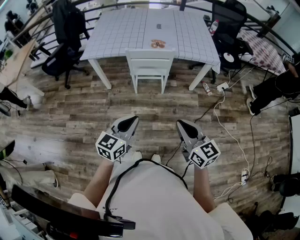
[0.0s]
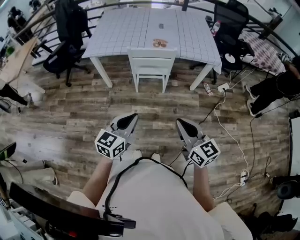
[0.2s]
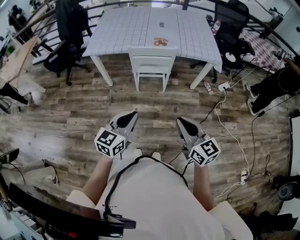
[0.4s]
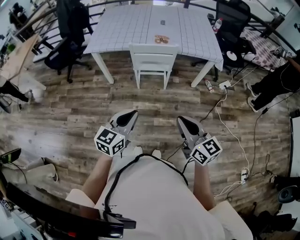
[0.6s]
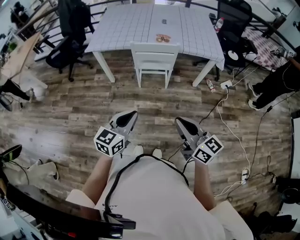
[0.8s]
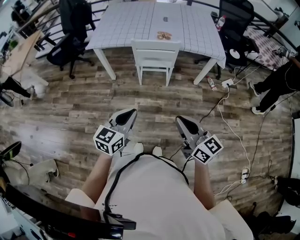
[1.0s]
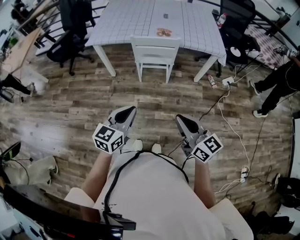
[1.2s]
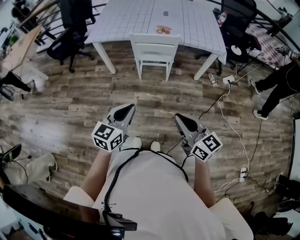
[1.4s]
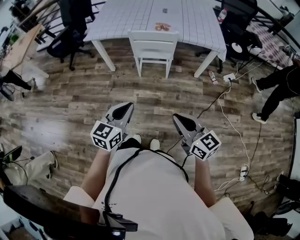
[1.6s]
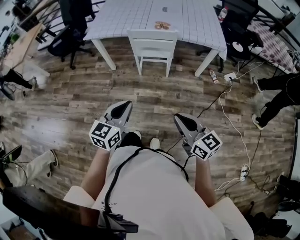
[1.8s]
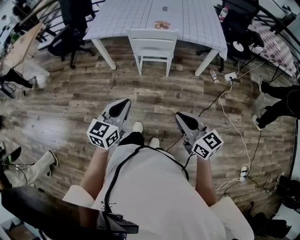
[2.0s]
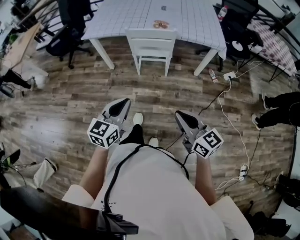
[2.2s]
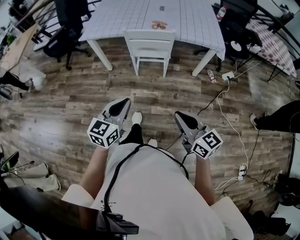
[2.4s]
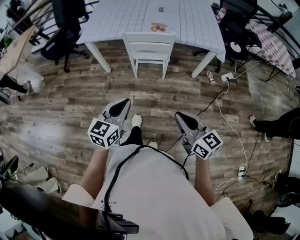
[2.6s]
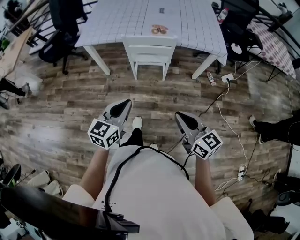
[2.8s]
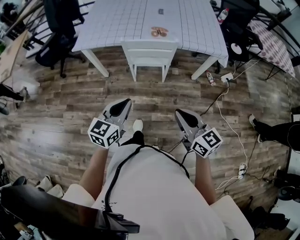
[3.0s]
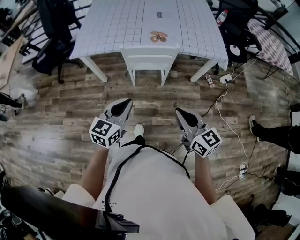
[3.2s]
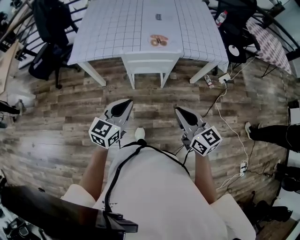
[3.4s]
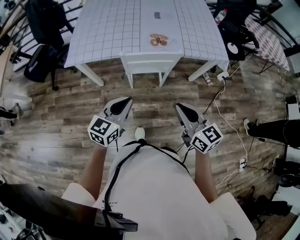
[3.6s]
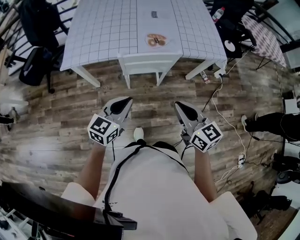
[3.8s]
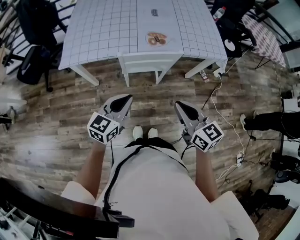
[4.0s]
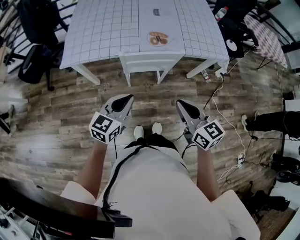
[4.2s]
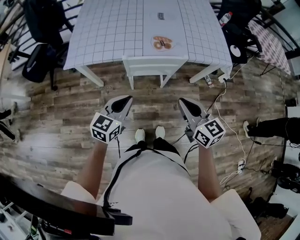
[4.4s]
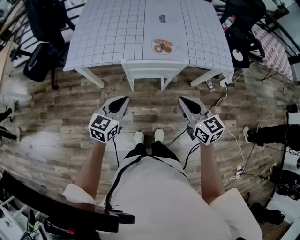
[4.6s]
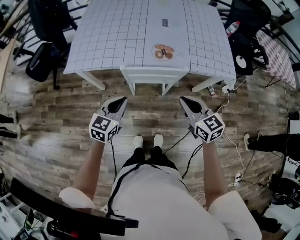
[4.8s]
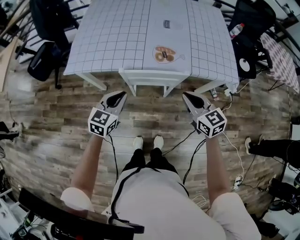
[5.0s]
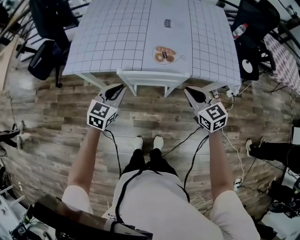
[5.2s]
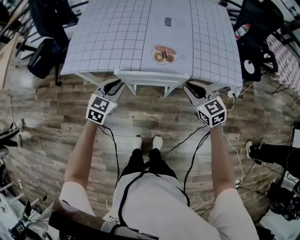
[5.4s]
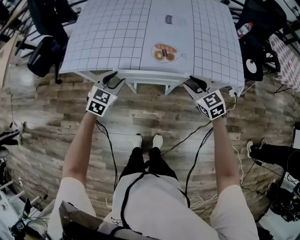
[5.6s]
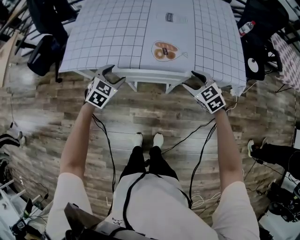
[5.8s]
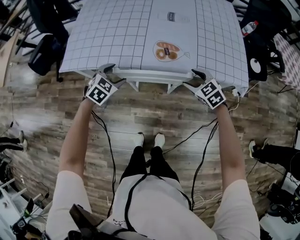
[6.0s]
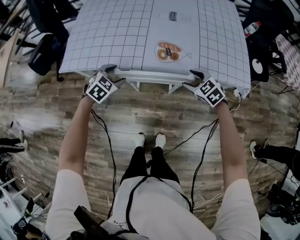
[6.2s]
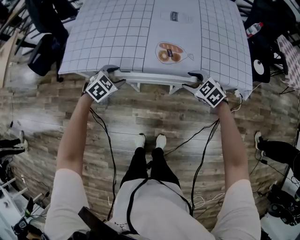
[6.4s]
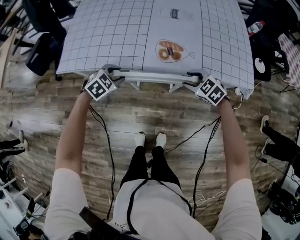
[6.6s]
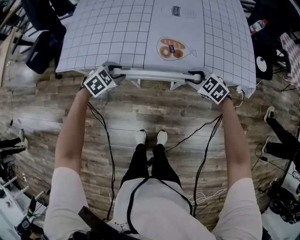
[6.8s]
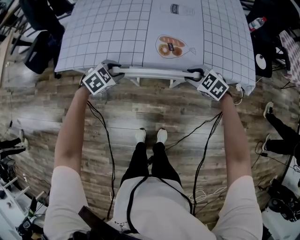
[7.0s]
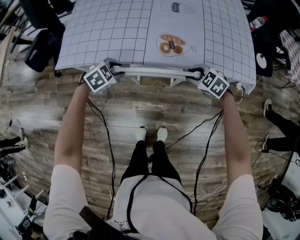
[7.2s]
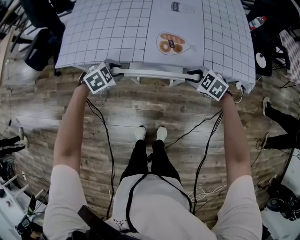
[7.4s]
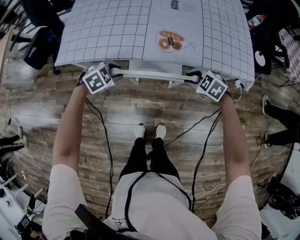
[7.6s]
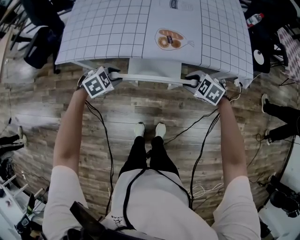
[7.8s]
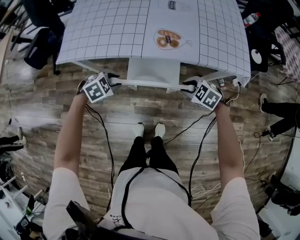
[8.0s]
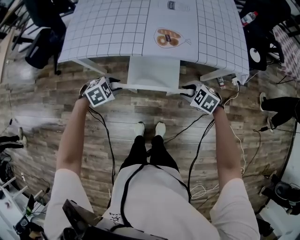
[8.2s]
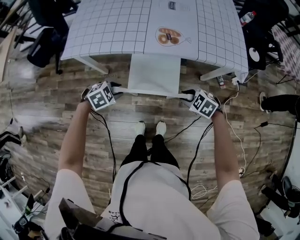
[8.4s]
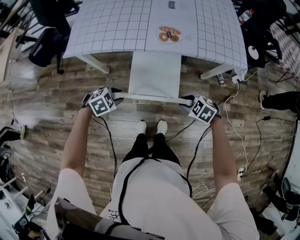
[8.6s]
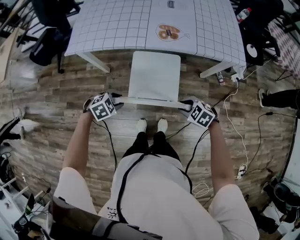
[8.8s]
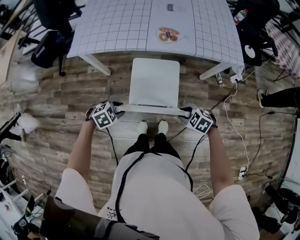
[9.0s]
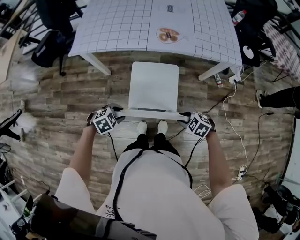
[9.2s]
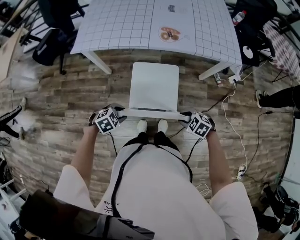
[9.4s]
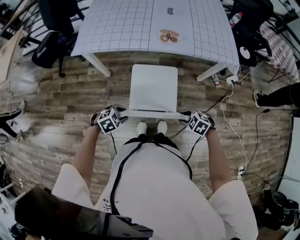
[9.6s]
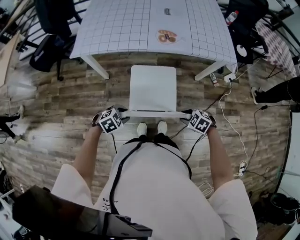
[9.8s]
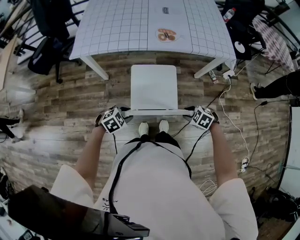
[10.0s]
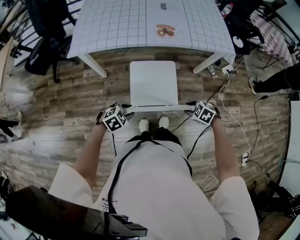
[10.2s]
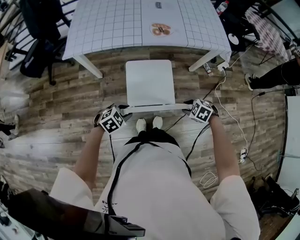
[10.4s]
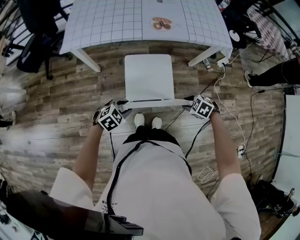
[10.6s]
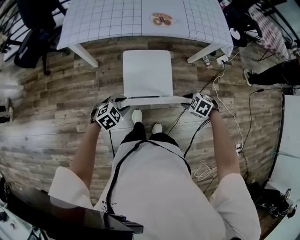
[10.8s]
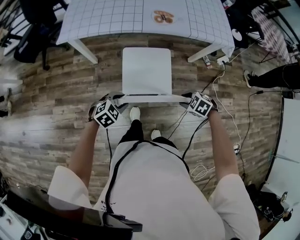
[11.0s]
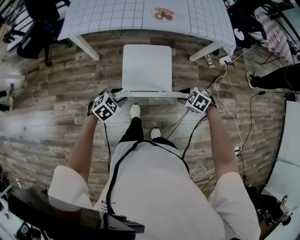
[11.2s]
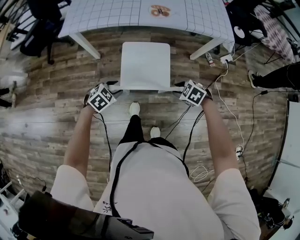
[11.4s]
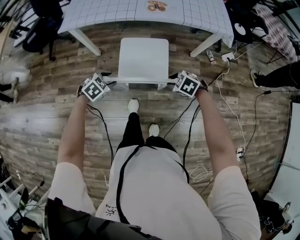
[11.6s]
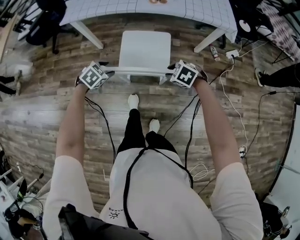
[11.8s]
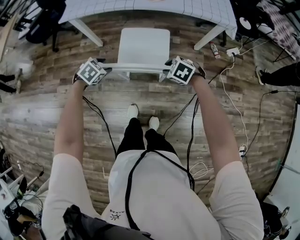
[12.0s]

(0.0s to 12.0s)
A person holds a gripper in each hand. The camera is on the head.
0.0s - 1.6s: The right gripper is displaced backward by approximately 5 cm.
1.6s - 3.0s: The two grippers go some 15 cm forward.
3.0s - 4.4s: The right gripper is displaced forward by some 20 cm. The left gripper is displaced forward and to the left by some 20 cm.
4.4s - 6.0s: The left gripper moves forward and downward, about 30 cm, points its fingers roughly 30 degrees further downward, and opens, while the right gripper shifts approximately 35 cm forward, downward and to the right, rotates some 50 degrees, and opens.
6.0s - 7.6s: The left gripper ends up approximately 5 cm from where it was, changes its angle by approximately 20 degrees, and closes. Meanwhile the right gripper travels downward by roughly 5 cm, changes its angle by about 20 degrees, and closes its fingers.
7.6s - 9.0s: The left gripper changes place by approximately 30 cm. The right gripper shifts by about 30 cm.
9.0s - 10.4s: The grippers move only a little.
10.4s - 12.0s: The left gripper swivels roughly 20 degrees.

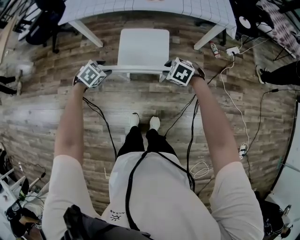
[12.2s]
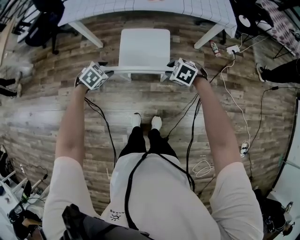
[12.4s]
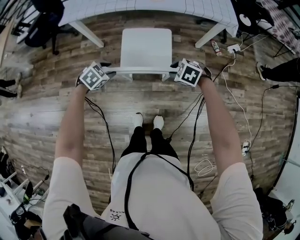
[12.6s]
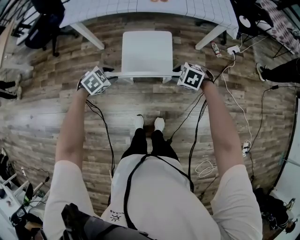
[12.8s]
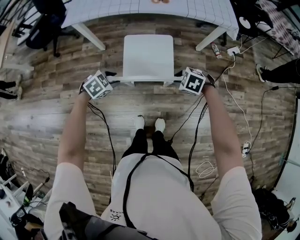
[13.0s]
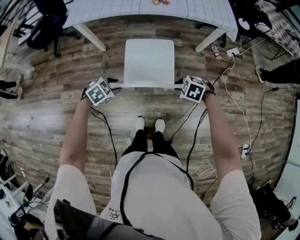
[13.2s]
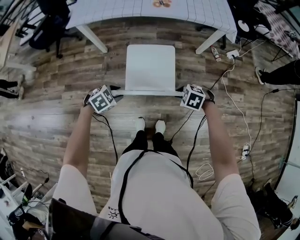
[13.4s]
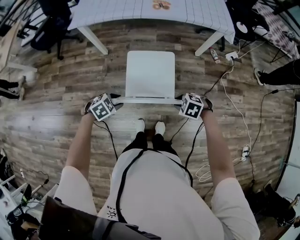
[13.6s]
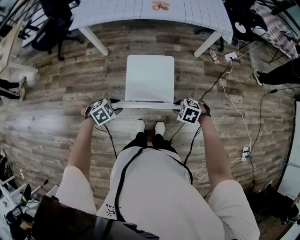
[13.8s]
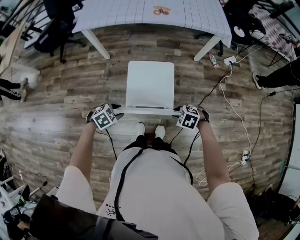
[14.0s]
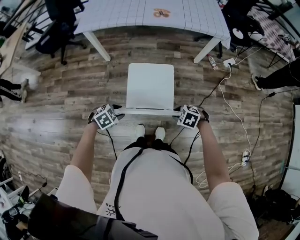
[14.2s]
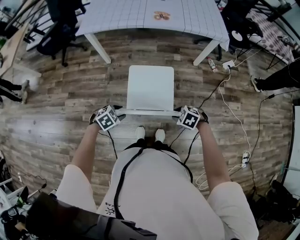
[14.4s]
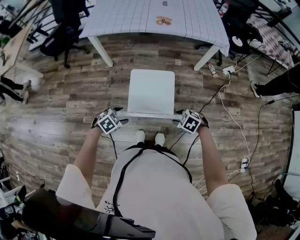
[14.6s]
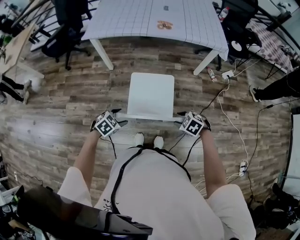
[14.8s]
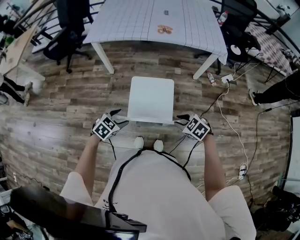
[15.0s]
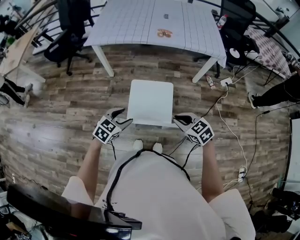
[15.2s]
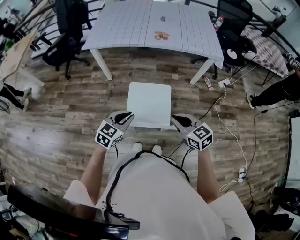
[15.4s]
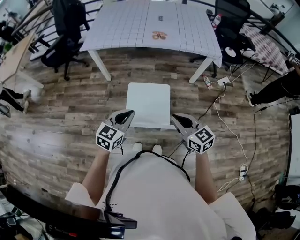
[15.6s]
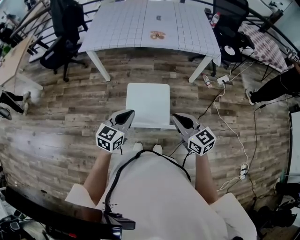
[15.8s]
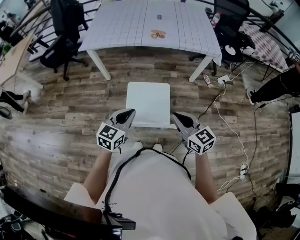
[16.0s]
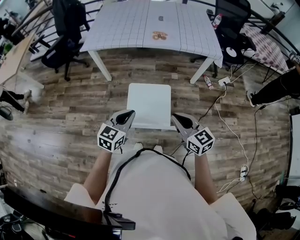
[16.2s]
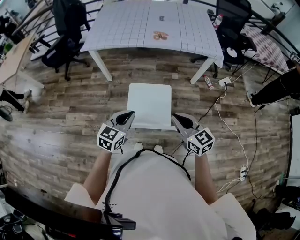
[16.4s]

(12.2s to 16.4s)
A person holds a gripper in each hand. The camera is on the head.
12.2s - 13.6s: The left gripper changes place by approximately 15 cm; the right gripper ends up roughly 15 cm from where it was.
13.6s - 15.0s: Both grippers move upward, approximately 10 cm. The left gripper rotates about 20 degrees, and opens its fingers.
15.0s - 16.4s: The left gripper is displaced upward and to the right by approximately 15 cm, rotates roughly 30 degrees, and closes its fingers, while the right gripper heads upward, covering some 15 cm, tips its fingers upward by some 40 degrees, and closes.

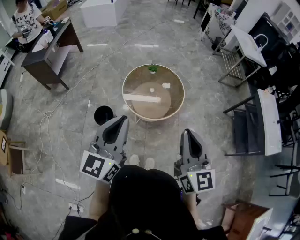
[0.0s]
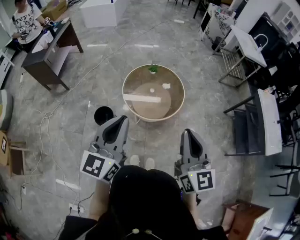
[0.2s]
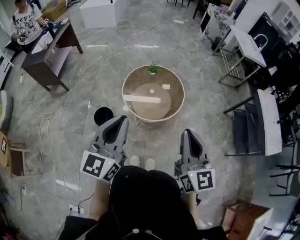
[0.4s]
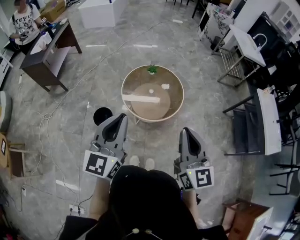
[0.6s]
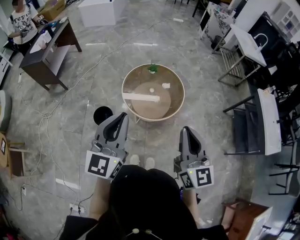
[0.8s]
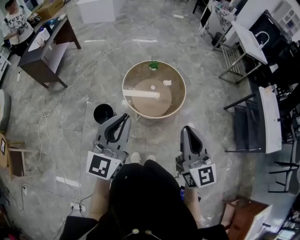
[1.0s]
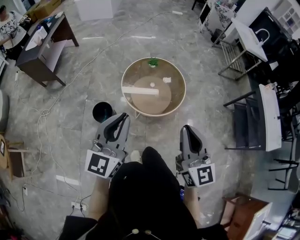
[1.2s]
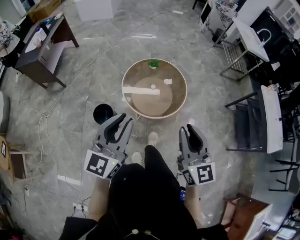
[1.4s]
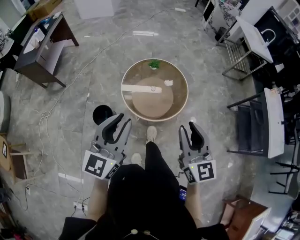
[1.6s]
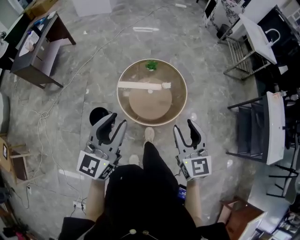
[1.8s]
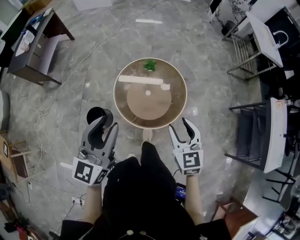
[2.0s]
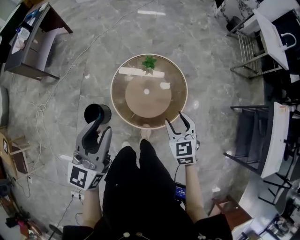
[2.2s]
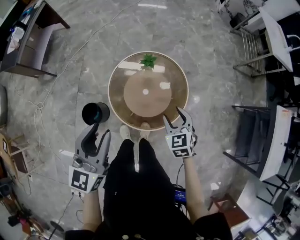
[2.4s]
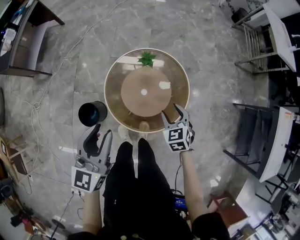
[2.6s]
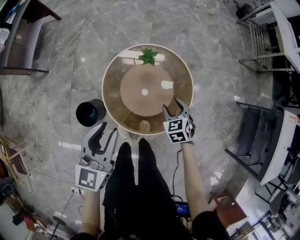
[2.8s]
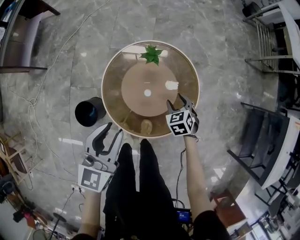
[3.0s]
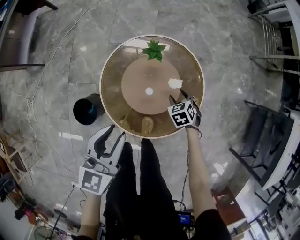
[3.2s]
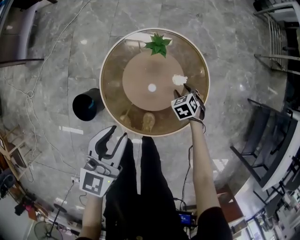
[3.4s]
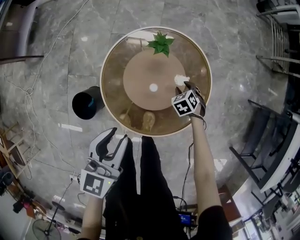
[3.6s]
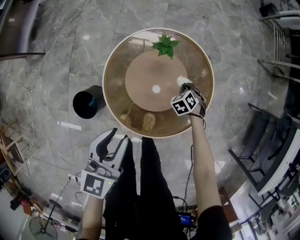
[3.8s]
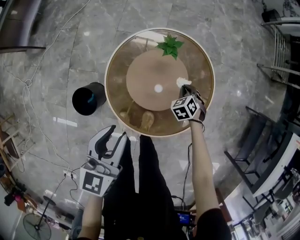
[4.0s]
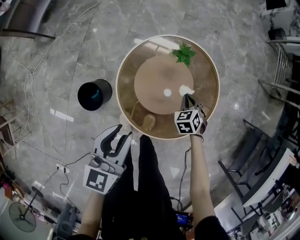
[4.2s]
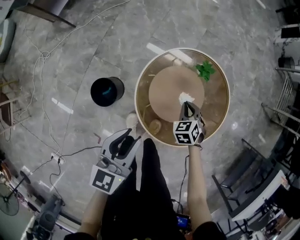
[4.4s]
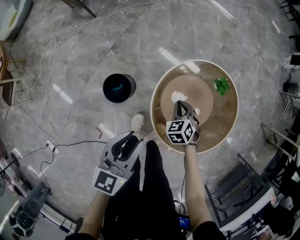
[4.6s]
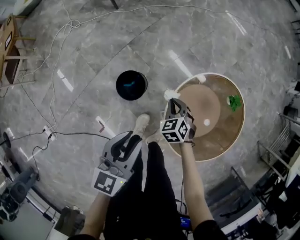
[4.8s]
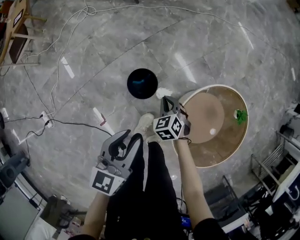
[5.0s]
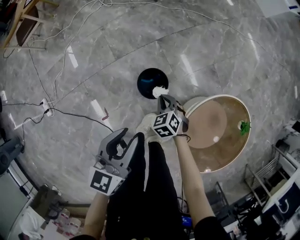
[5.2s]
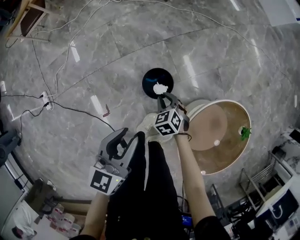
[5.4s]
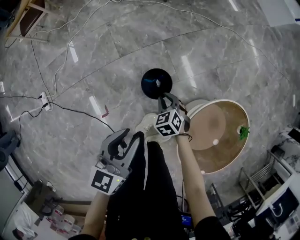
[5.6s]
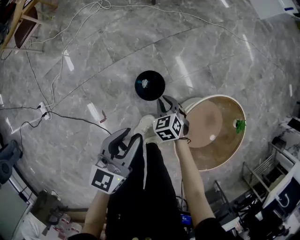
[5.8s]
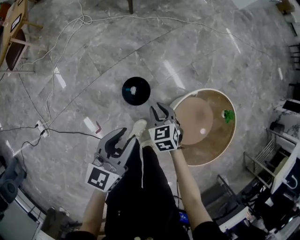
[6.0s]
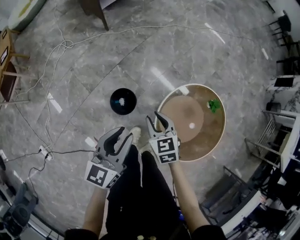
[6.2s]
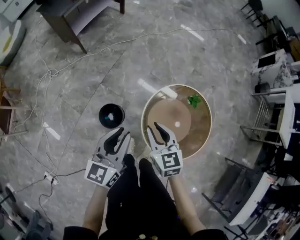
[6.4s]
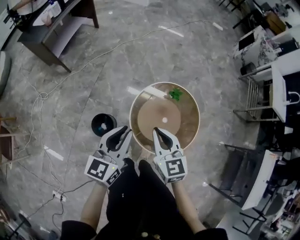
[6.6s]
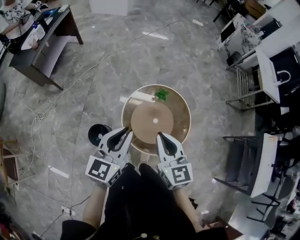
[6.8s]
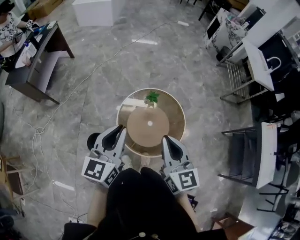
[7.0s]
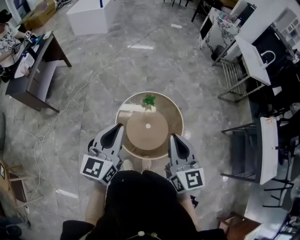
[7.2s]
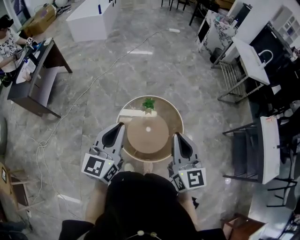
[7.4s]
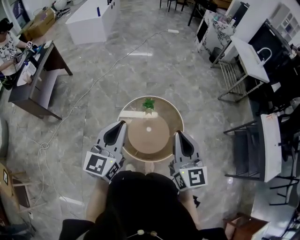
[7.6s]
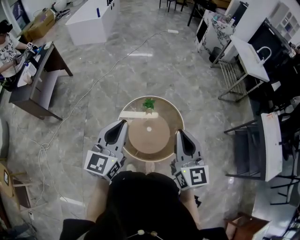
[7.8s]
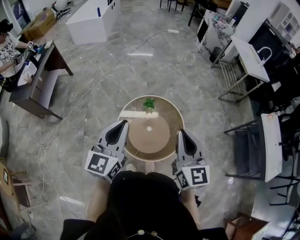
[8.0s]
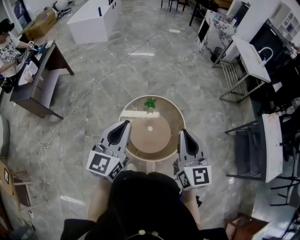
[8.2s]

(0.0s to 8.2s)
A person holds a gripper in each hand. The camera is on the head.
0.0s - 1.6s: The two grippers go about 10 cm forward and downward. The right gripper opens up.
1.6s - 3.2s: The left gripper heads forward and downward, covering some 40 cm, and turns by roughly 20 degrees, while the right gripper goes about 60 cm downward and forward, points its fingers about 60 degrees further downward, and opens.
3.2s - 5.0s: The left gripper shifts by about 35 cm, and changes its angle by approximately 50 degrees; the right gripper reaches about 10 cm downward, then returns, rotates around the line of its fingers by roughly 50 degrees, counterclockwise from behind, and closes its fingers.
5.0s - 6.6s: The right gripper moves upward, some 35 cm, angles its fingers upward, by some 30 degrees, and opens, then closes again; the left gripper heads upward, covering some 20 cm, and rotates approximately 40 degrees.
6.6s - 8.2s: The left gripper heads to the right and upward, covering about 20 cm, and changes its angle by approximately 20 degrees. The right gripper is displaced to the right and upward by some 30 cm, and turns by about 40 degrees.
